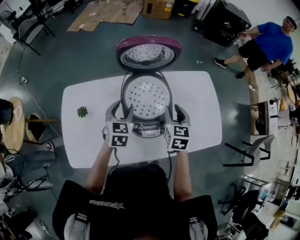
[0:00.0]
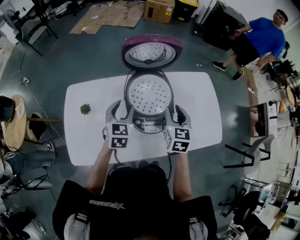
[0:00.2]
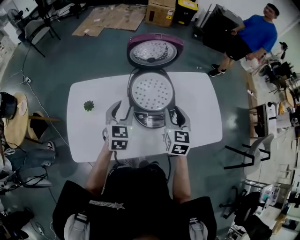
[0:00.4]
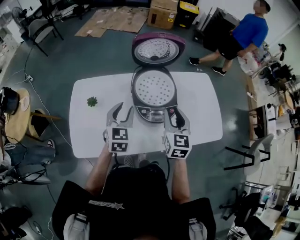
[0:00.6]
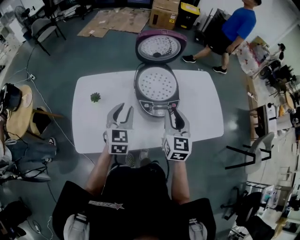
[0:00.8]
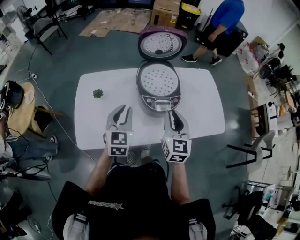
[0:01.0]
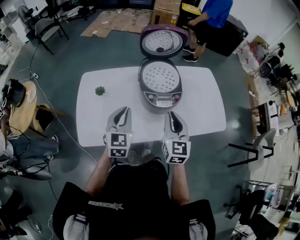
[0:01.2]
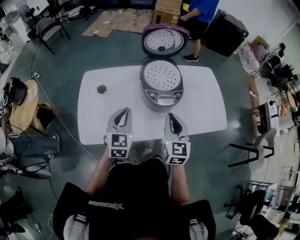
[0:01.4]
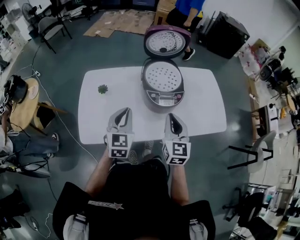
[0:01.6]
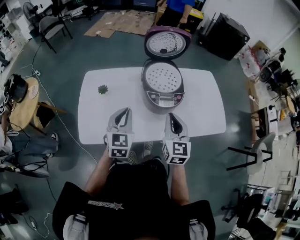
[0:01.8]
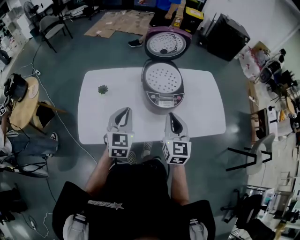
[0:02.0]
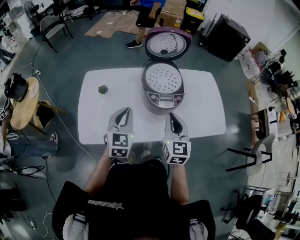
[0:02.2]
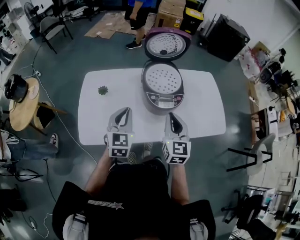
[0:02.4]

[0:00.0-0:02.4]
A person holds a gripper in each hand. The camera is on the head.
0:00.0 to 0:01.2: Both grippers move backward, some 20 cm. The left gripper closes its fingers. Meanwhile the right gripper closes up.
0:01.2 to 0:02.4: The grippers move only a little.

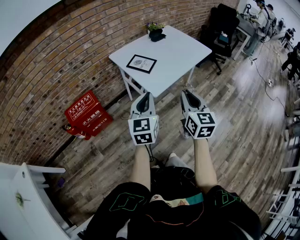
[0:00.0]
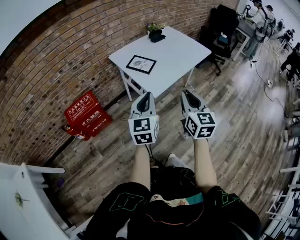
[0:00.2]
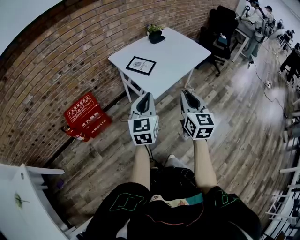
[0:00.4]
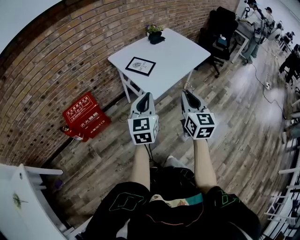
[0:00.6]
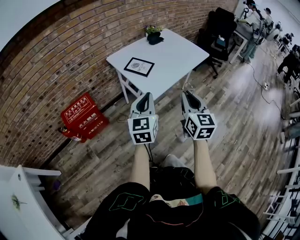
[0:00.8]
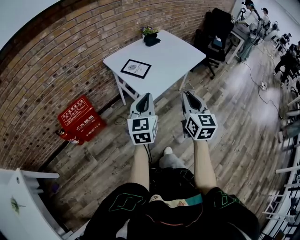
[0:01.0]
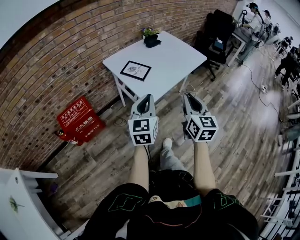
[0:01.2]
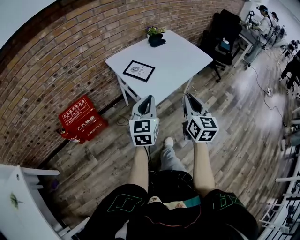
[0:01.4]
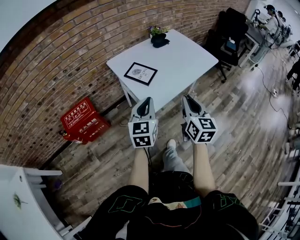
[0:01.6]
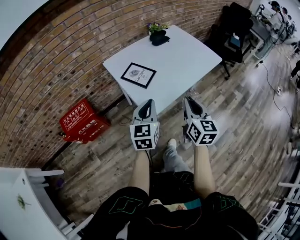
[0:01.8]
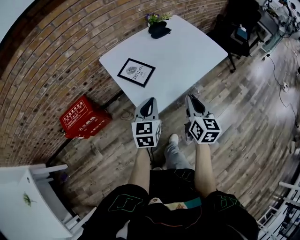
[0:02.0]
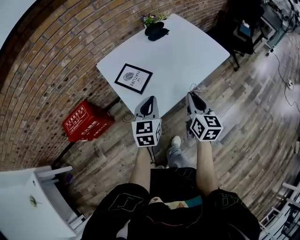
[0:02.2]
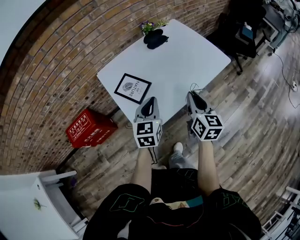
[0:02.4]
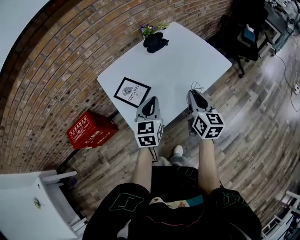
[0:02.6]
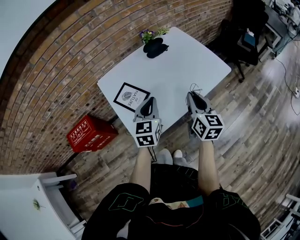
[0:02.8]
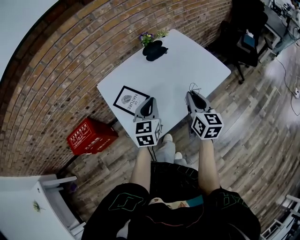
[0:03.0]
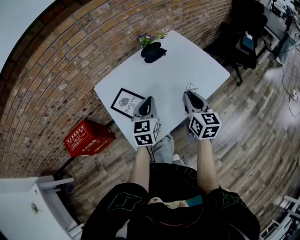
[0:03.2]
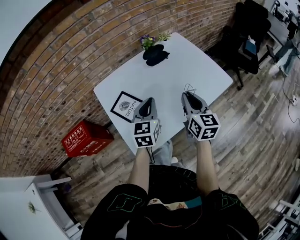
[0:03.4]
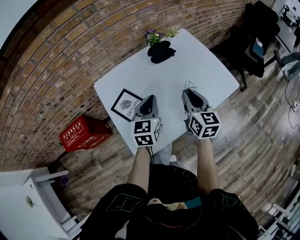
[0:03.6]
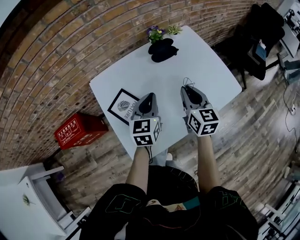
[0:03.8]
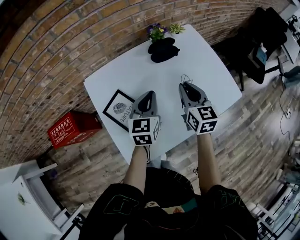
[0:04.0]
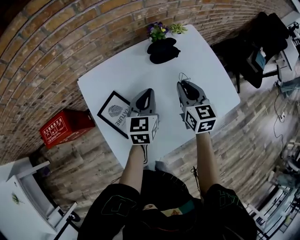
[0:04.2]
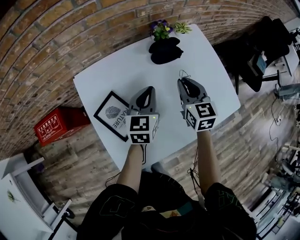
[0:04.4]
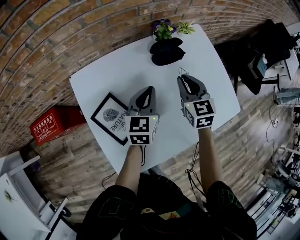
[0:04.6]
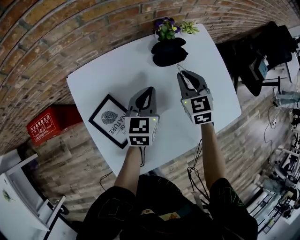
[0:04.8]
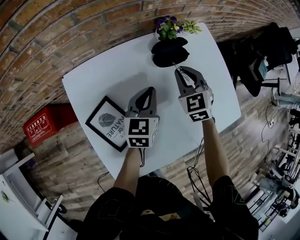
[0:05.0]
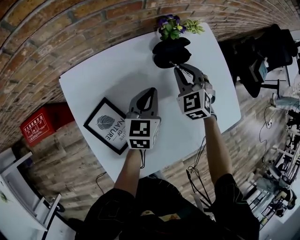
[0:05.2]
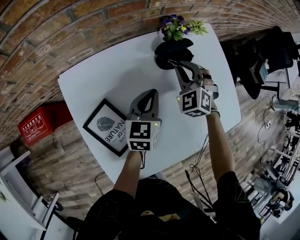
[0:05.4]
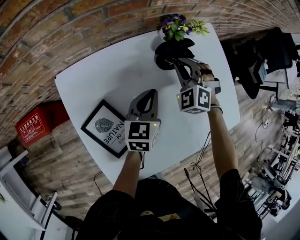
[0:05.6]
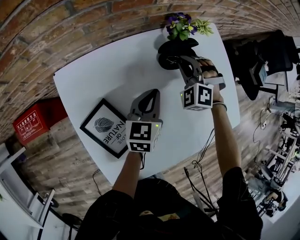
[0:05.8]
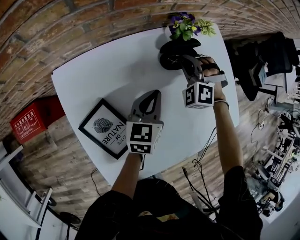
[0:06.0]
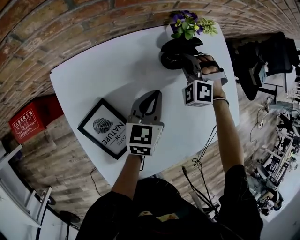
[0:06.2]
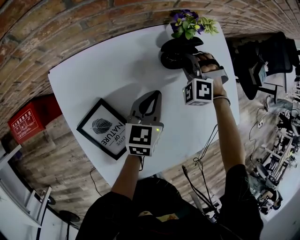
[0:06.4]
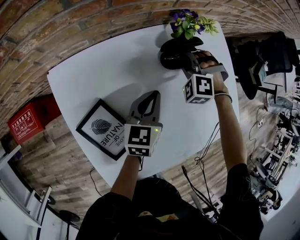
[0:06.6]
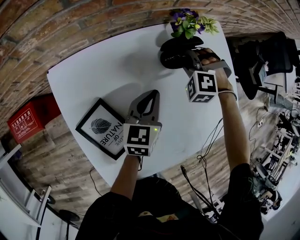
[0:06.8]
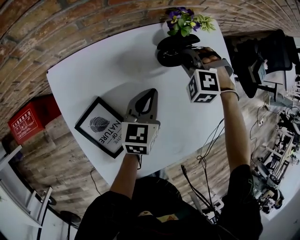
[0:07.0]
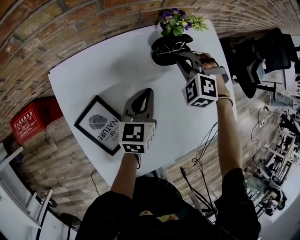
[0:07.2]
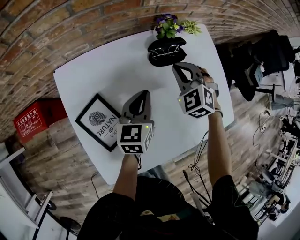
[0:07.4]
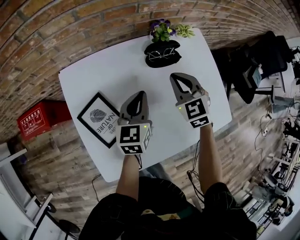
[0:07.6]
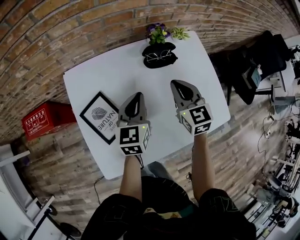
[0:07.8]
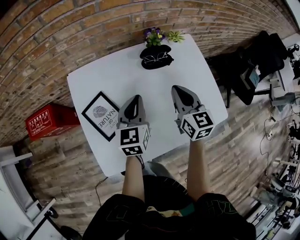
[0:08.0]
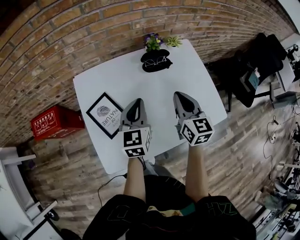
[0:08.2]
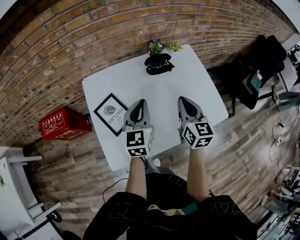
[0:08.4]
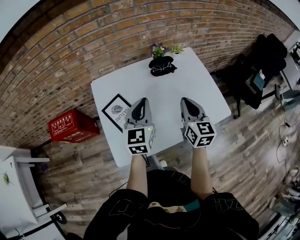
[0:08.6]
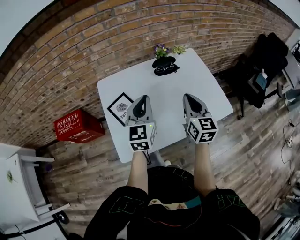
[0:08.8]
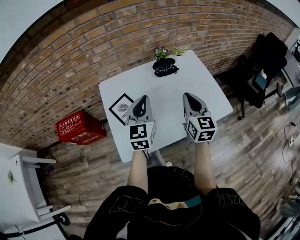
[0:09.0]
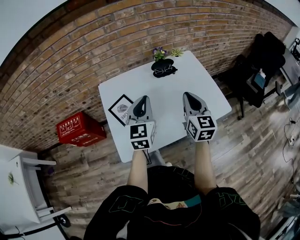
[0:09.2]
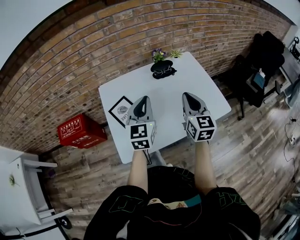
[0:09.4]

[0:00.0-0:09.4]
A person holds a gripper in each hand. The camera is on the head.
0:00.0 to 0:01.6: Both grippers travel together forward, about 10 cm.
0:01.6 to 0:03.2: The grippers both shift forward and to the right by approximately 30 cm.
0:03.2 to 0:04.8: The left gripper goes some 25 cm forward and downward; the right gripper is displaced forward by roughly 30 cm, and rotates roughly 50 degrees.
0:04.8 to 0:06.2: The left gripper is displaced downward by approximately 5 cm; the right gripper heads downward and forward, covering about 15 cm, and rotates around the line of its fingers by roughly 70 degrees, counterclockwise from behind.
0:06.2 to 0:07.8: The right gripper is displaced backward and upward by about 20 cm, and rolls clockwise, seen from behind, by approximately 70 degrees. The left gripper is displaced upward and backward by approximately 10 cm.
0:07.8 to 0:09.4: The left gripper travels upward and backward by roughly 20 cm, and swivels some 20 degrees, while the right gripper is displaced backward and upward by about 20 cm, and changes its angle by roughly 20 degrees.

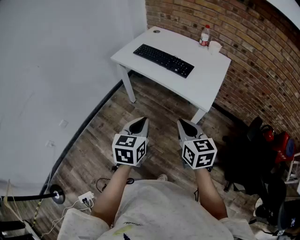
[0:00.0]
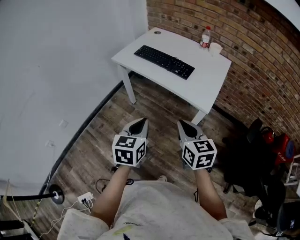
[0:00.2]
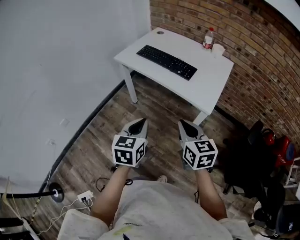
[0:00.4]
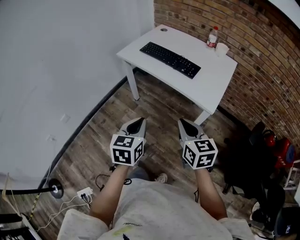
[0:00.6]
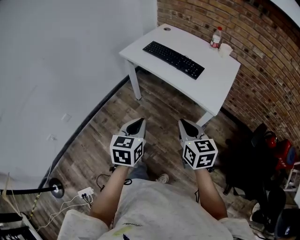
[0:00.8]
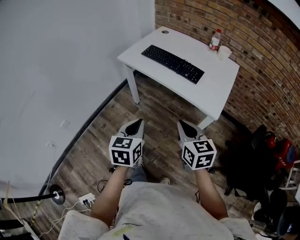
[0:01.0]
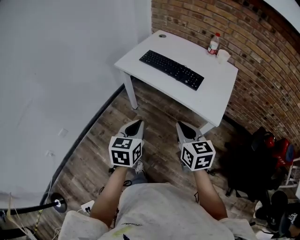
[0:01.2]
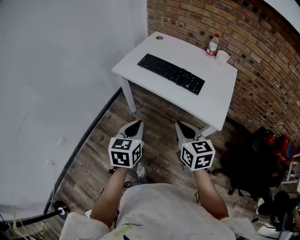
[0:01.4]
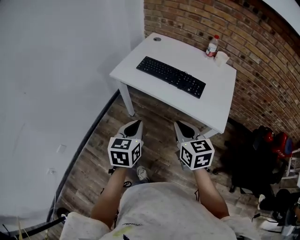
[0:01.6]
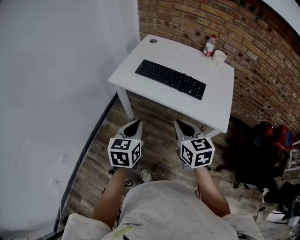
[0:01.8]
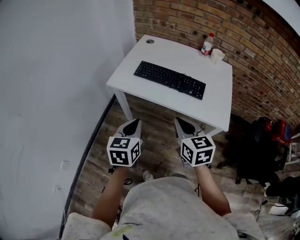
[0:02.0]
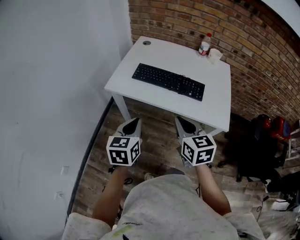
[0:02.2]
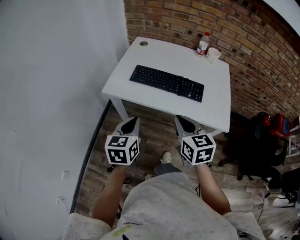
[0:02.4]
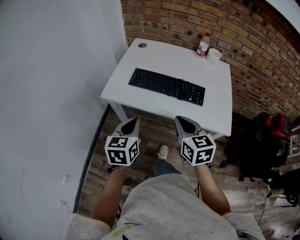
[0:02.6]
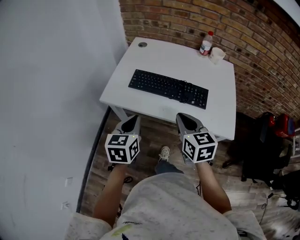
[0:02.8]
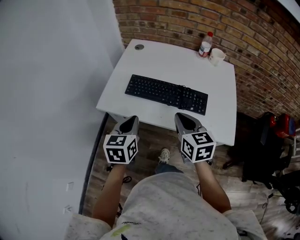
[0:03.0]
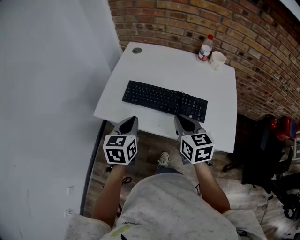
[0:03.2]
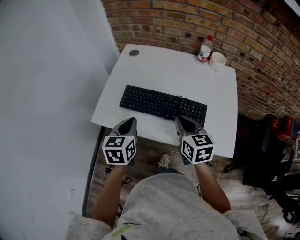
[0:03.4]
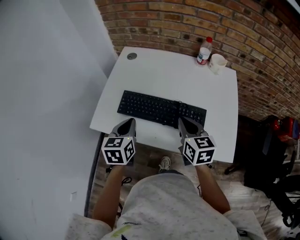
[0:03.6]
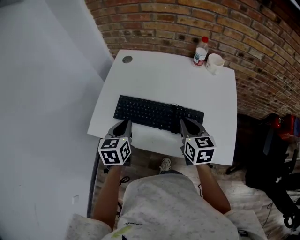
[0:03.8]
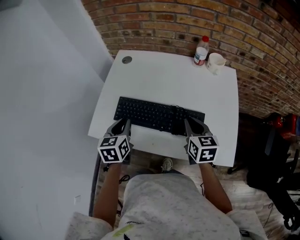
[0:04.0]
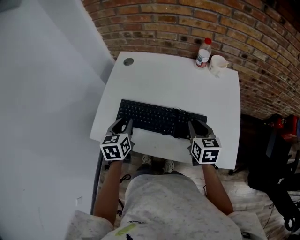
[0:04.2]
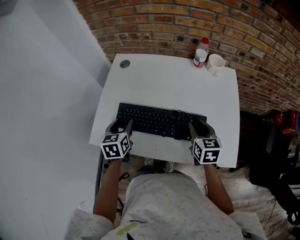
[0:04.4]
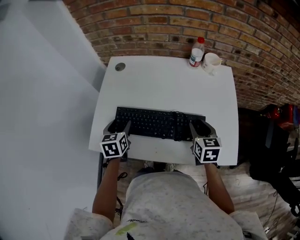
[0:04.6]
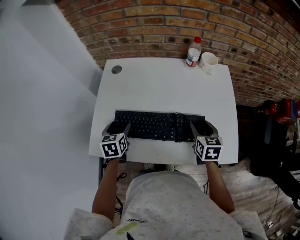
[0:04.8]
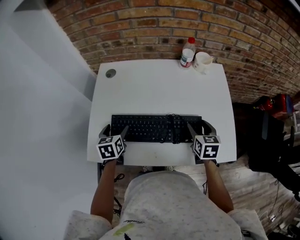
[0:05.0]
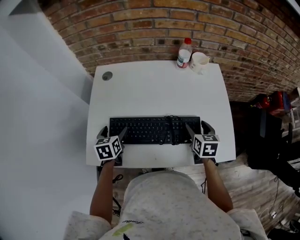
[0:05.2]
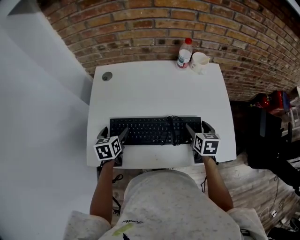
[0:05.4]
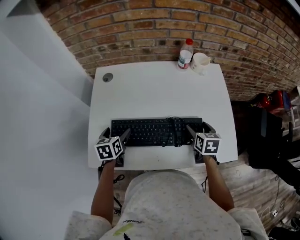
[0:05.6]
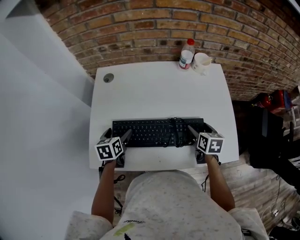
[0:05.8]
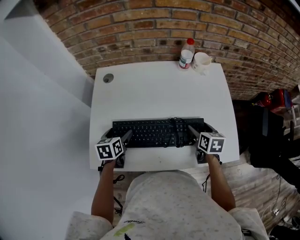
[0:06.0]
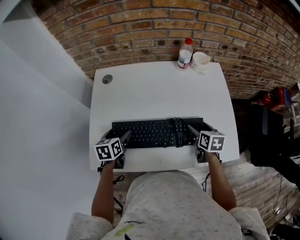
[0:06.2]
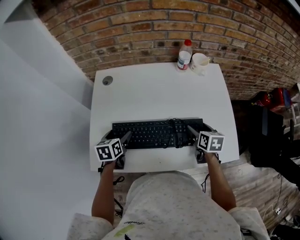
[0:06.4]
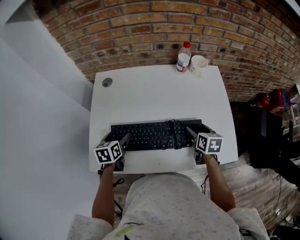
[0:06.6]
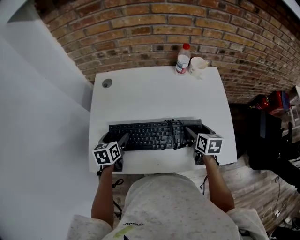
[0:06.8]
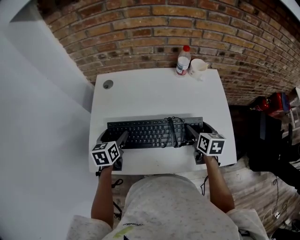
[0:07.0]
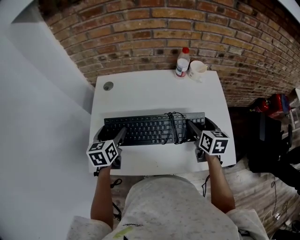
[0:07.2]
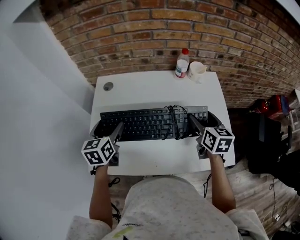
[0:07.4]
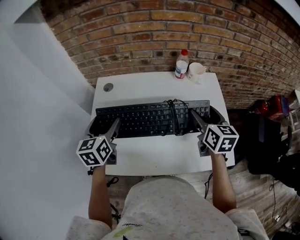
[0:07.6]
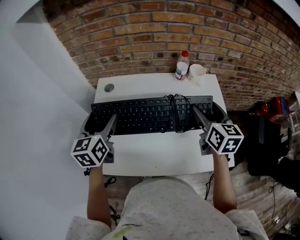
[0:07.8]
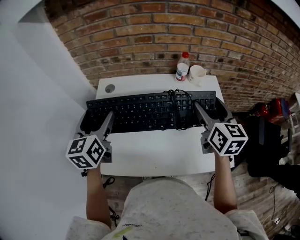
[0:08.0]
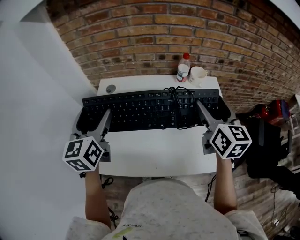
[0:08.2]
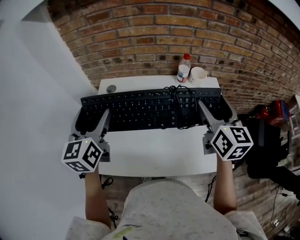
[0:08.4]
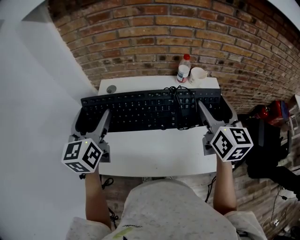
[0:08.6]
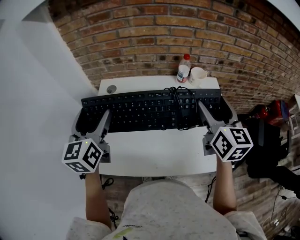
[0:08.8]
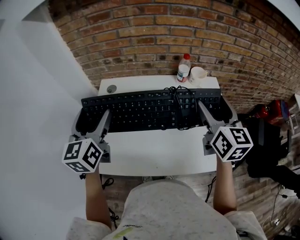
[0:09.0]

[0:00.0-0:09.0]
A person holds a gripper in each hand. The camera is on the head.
0:00.0 to 0:01.6: The two grippers go some 20 cm forward and to the left.
0:01.6 to 0:03.0: Both grippers move forward, approximately 20 cm.
0:03.0 to 0:04.4: The left gripper goes some 20 cm forward, and opens up, while the right gripper heads forward, to the right and downward, covering approximately 20 cm.
0:04.4 to 0:06.0: The right gripper is displaced downward by about 5 cm, turns by about 20 degrees, and opens, while the left gripper travels downward and forward by roughly 10 cm, and opens its fingers.
0:06.0 to 0:07.6: Both grippers travel together upward, approximately 20 cm. The right gripper swivels about 20 degrees; the left gripper rotates roughly 30 degrees.
0:07.6 to 0:09.0: Both grippers move upward, approximately 10 cm.

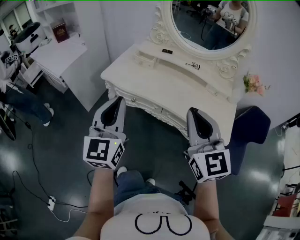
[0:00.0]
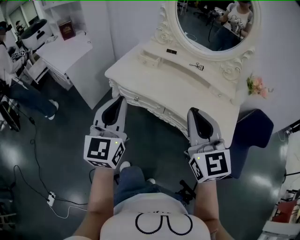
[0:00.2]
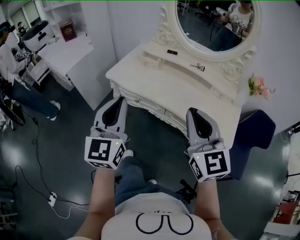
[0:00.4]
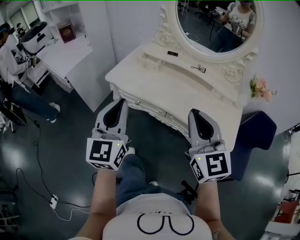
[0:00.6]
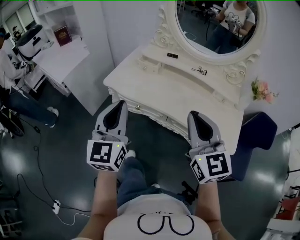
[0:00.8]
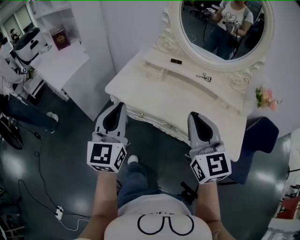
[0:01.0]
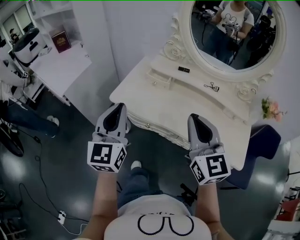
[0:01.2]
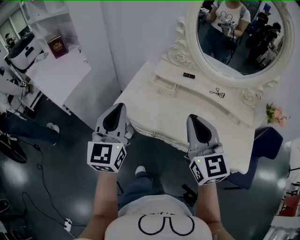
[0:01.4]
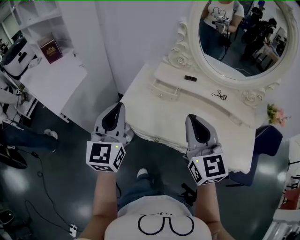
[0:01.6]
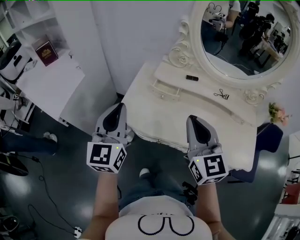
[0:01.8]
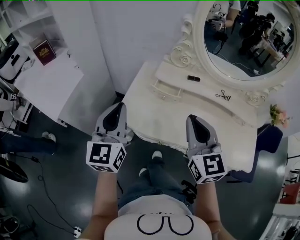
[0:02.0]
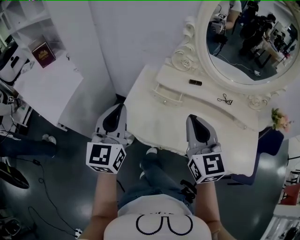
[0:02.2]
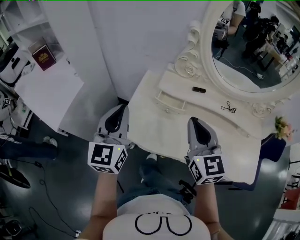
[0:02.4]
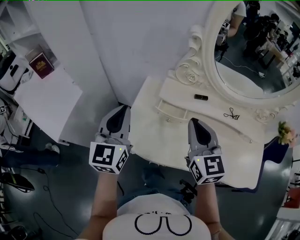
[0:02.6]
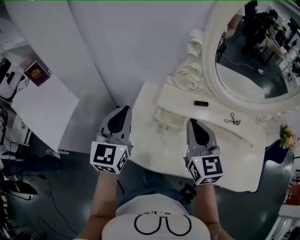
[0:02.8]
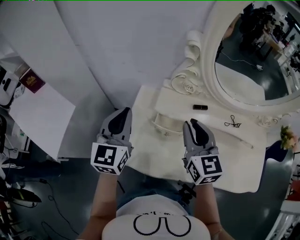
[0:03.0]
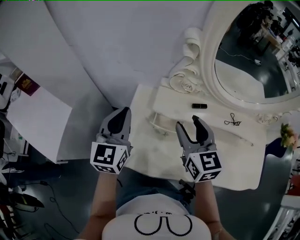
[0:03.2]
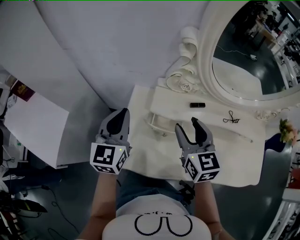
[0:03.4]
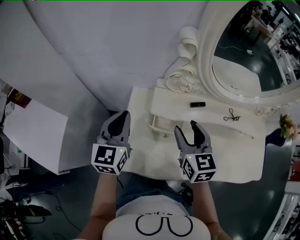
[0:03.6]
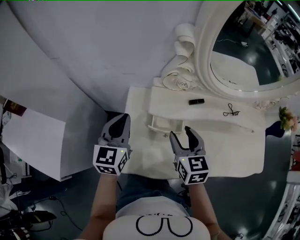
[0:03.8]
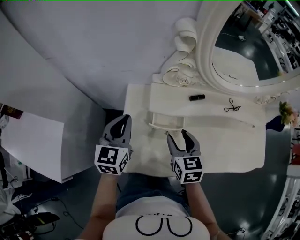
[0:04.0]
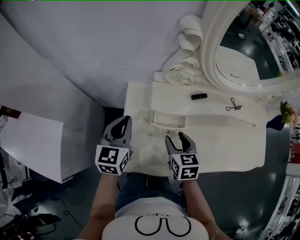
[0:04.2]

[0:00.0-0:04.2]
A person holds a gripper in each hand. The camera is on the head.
0:00.0 to 0:01.4: The grippers both shift forward and to the left by roughly 25 cm.
0:01.4 to 0:02.8: The grippers both shift forward by roughly 25 cm.
0:02.8 to 0:04.2: The left gripper moves downward and forward, some 15 cm, and swivels about 20 degrees. Meanwhile the right gripper is displaced downward by roughly 20 cm, angles its fingers downward, by approximately 30 degrees, and opens its fingers.
